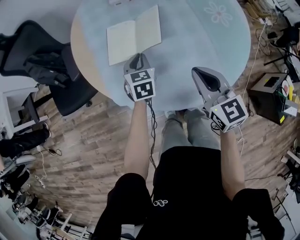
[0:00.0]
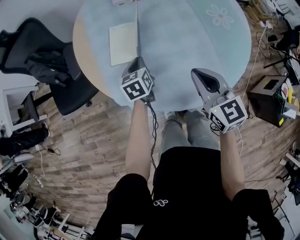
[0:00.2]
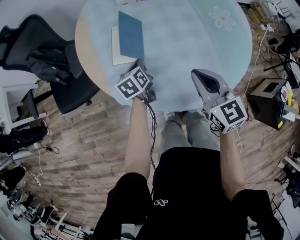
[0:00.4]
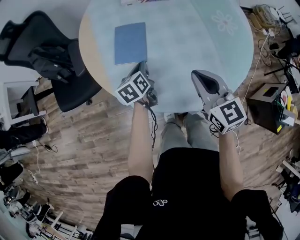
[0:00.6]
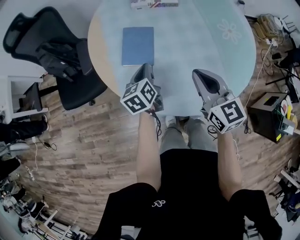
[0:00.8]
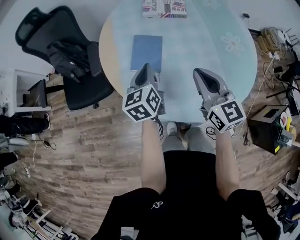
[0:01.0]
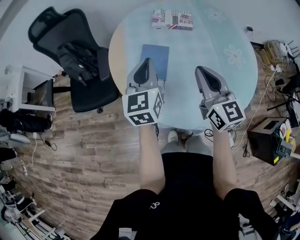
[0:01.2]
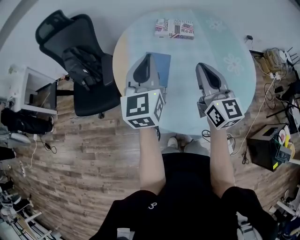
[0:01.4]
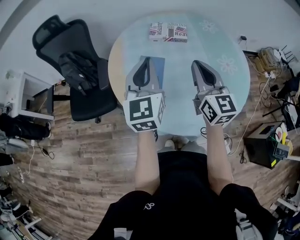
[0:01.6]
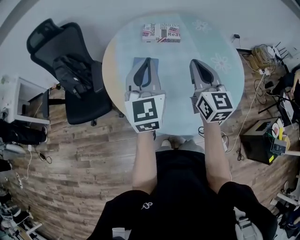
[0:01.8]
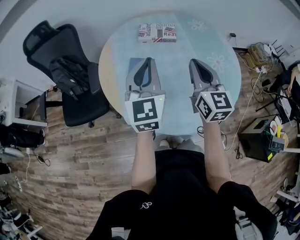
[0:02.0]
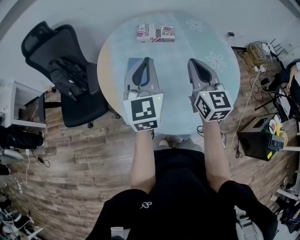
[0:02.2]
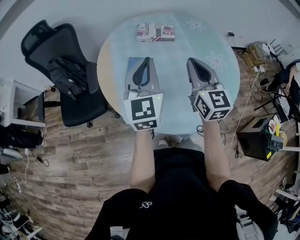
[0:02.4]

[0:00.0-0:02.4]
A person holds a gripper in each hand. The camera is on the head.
0:00.0 to 0:01.2: The right gripper shifts about 15 cm upward, forward and to the left; the left gripper goes roughly 25 cm upward, and swivels about 30 degrees.
0:01.2 to 0:02.4: The left gripper is displaced upward by approximately 10 cm. Meanwhile the right gripper changes place by approximately 5 cm.

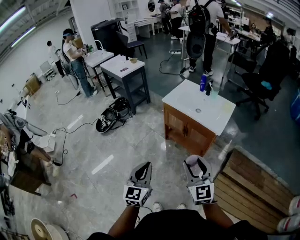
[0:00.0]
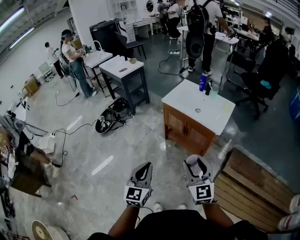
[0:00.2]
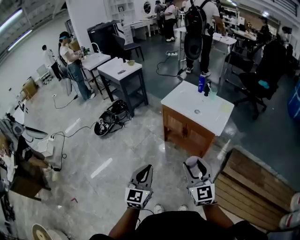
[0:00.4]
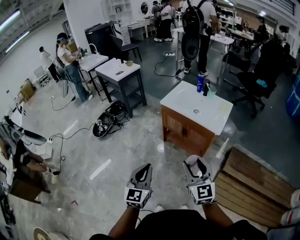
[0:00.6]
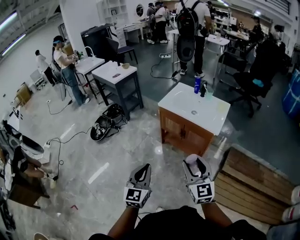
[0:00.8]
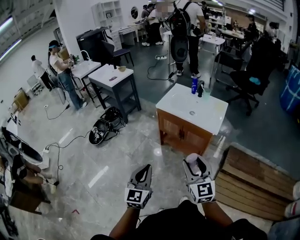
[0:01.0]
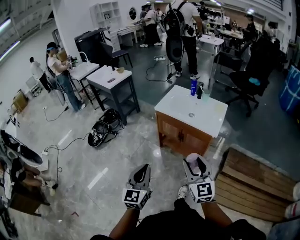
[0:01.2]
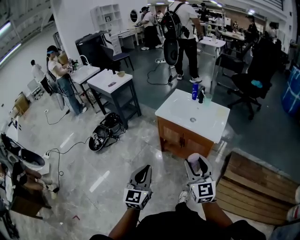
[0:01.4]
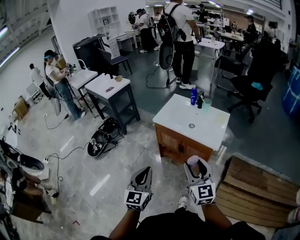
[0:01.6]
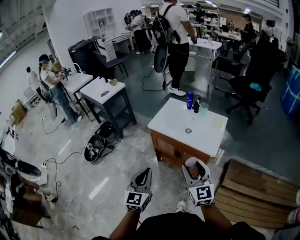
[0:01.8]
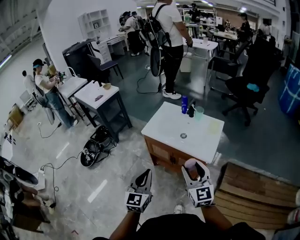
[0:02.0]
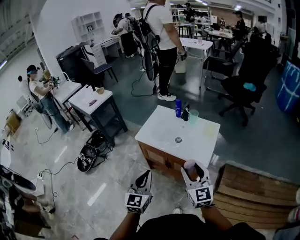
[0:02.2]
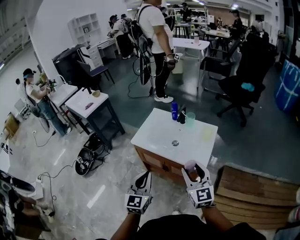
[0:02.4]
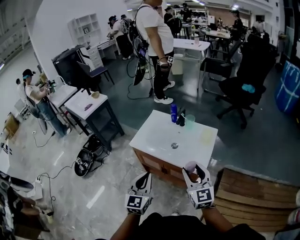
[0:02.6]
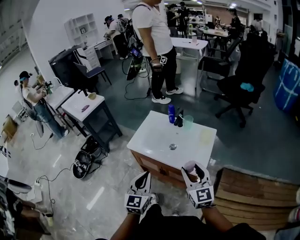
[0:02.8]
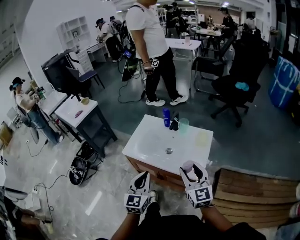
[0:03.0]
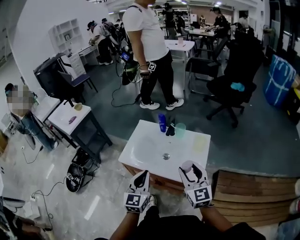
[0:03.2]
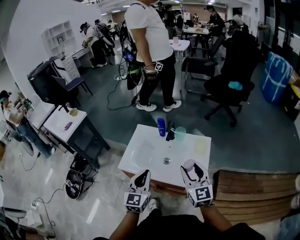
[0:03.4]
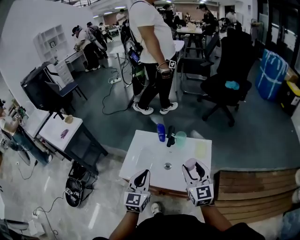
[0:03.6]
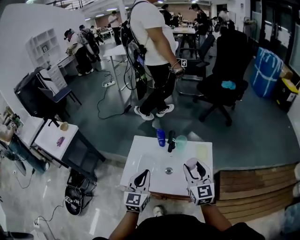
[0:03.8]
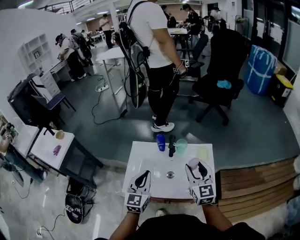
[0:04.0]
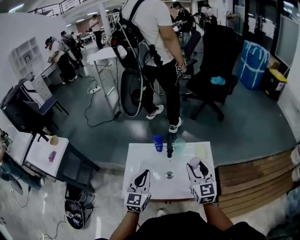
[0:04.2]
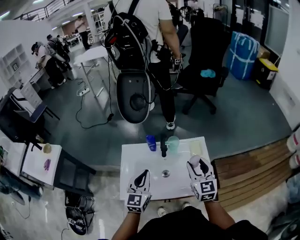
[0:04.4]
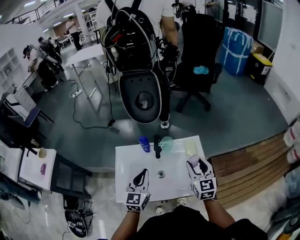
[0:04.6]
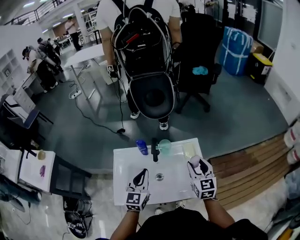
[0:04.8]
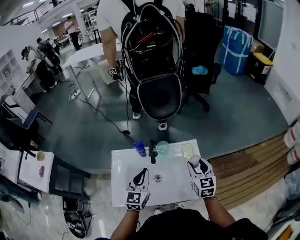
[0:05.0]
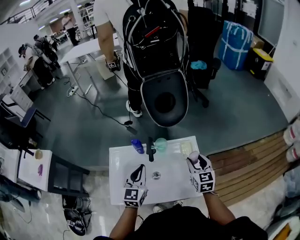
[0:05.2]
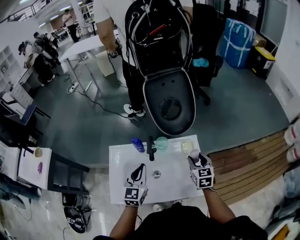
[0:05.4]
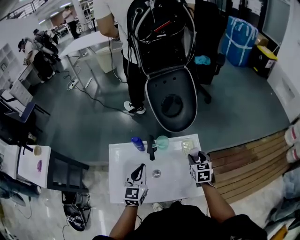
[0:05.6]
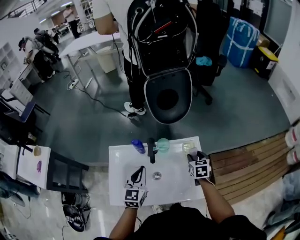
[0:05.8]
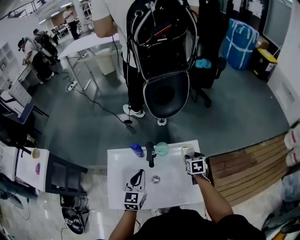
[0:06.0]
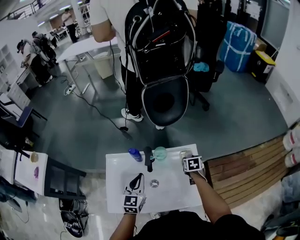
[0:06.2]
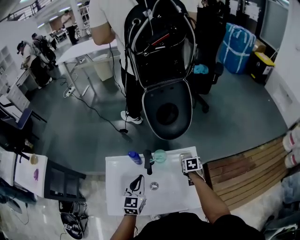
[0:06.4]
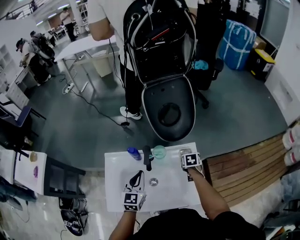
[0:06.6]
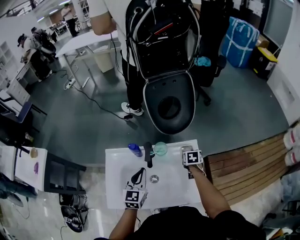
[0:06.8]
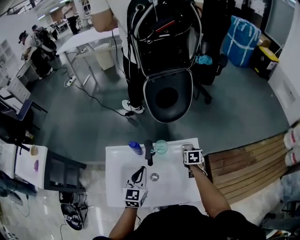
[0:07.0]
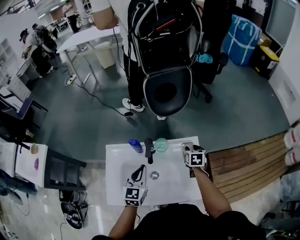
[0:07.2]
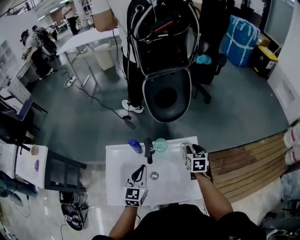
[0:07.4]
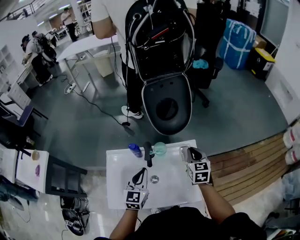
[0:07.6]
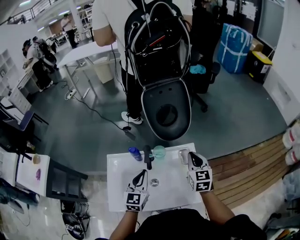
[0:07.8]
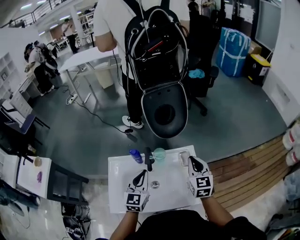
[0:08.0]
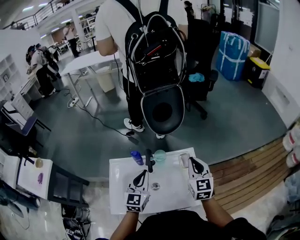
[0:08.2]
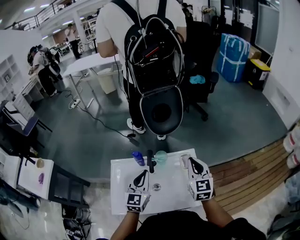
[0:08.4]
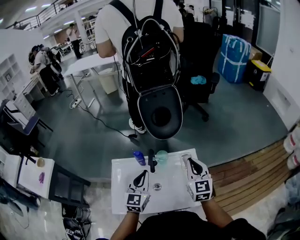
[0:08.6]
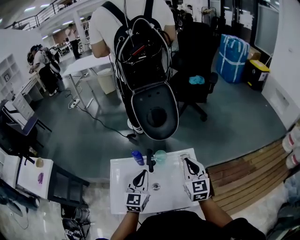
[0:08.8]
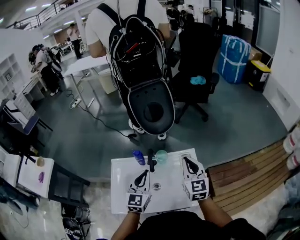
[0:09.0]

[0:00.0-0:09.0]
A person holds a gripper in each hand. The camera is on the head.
0:00.0 to 0:01.6: Both grippers travel together forward, some 15 cm.
0:01.6 to 0:03.0: Both grippers travel together forward and to the right, roughly 30 cm.
0:03.0 to 0:04.4: The right gripper ends up about 20 cm from where it was, and swivels roughly 30 degrees; the left gripper shifts by some 25 cm, and turns by about 30 degrees.
0:04.4 to 0:06.0: The right gripper moves downward and forward, some 25 cm, and points its fingers about 40 degrees further downward. Meanwhile the left gripper travels forward and downward by some 10 cm.
0:06.0 to 0:07.6: The right gripper heads upward, covering about 15 cm, changes its angle by roughly 20 degrees, and closes its fingers.
0:07.6 to 0:09.0: The right gripper travels upward and backward by some 15 cm, and swivels about 20 degrees. Meanwhile the left gripper is displaced upward by approximately 5 cm.

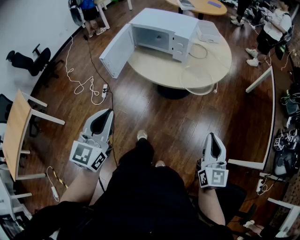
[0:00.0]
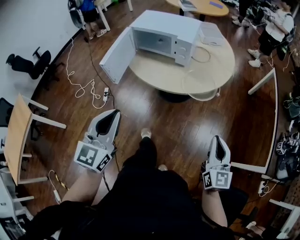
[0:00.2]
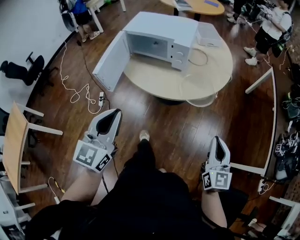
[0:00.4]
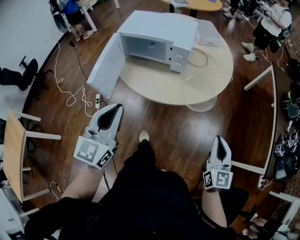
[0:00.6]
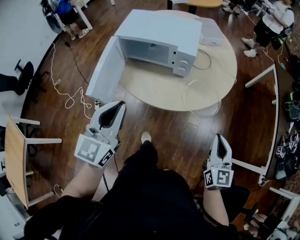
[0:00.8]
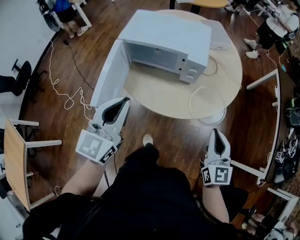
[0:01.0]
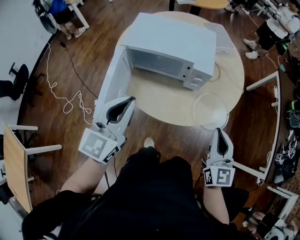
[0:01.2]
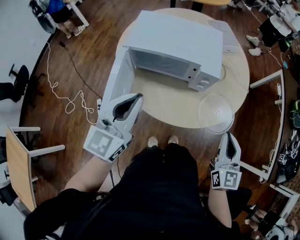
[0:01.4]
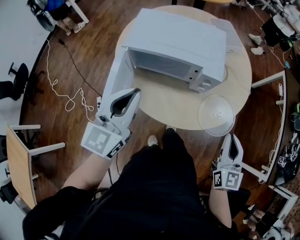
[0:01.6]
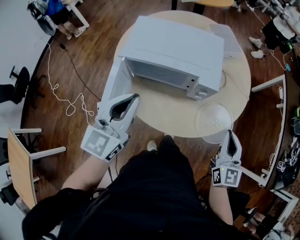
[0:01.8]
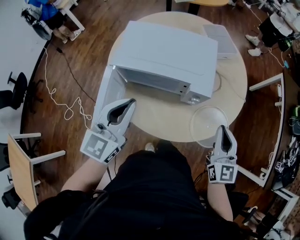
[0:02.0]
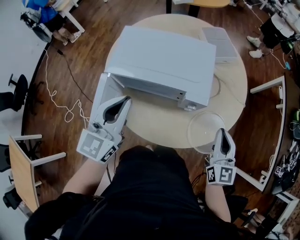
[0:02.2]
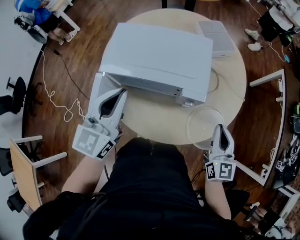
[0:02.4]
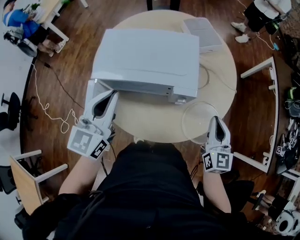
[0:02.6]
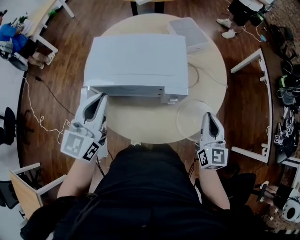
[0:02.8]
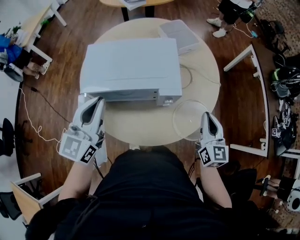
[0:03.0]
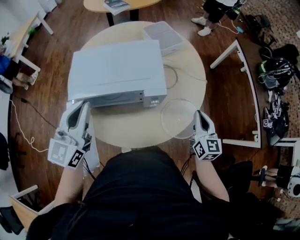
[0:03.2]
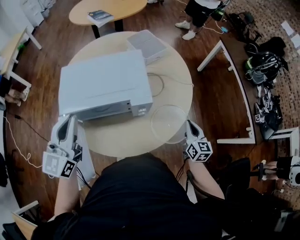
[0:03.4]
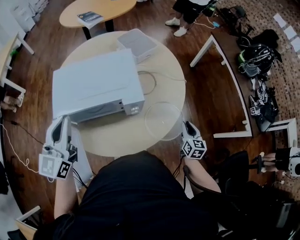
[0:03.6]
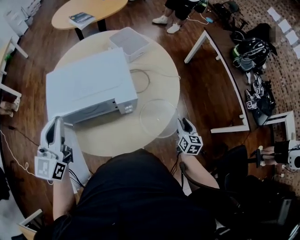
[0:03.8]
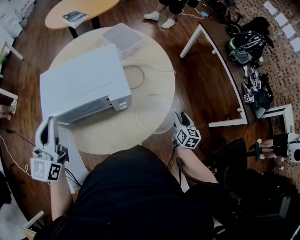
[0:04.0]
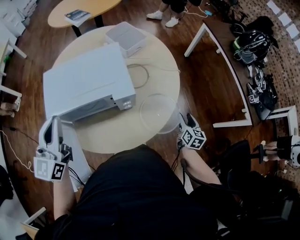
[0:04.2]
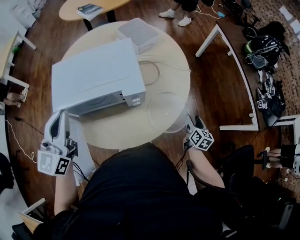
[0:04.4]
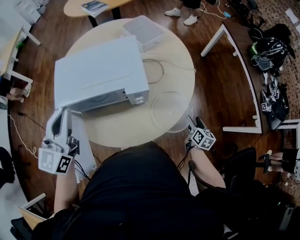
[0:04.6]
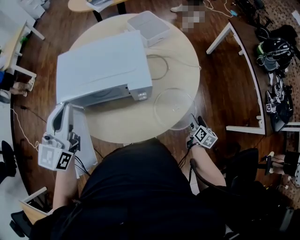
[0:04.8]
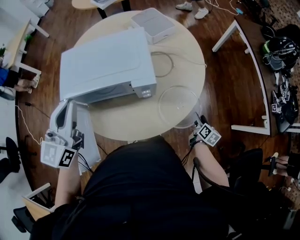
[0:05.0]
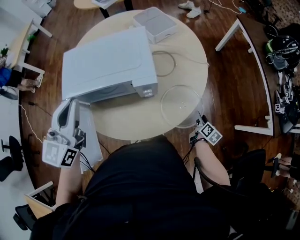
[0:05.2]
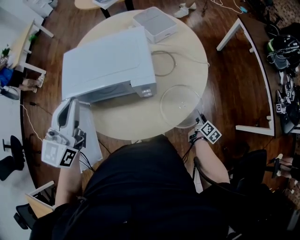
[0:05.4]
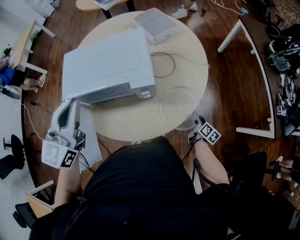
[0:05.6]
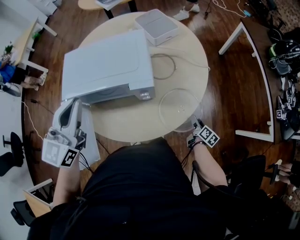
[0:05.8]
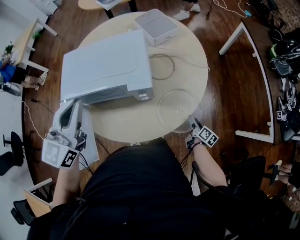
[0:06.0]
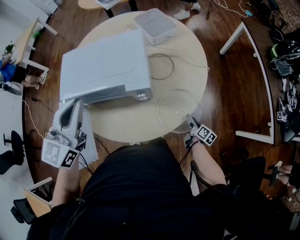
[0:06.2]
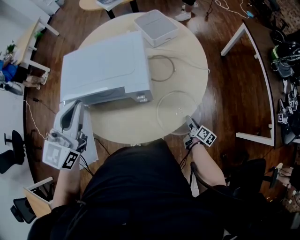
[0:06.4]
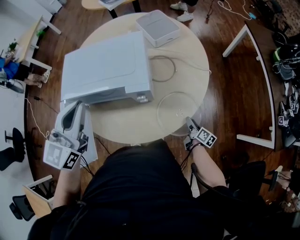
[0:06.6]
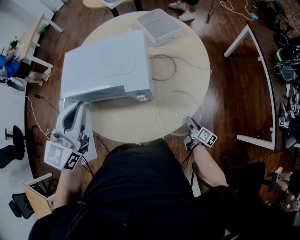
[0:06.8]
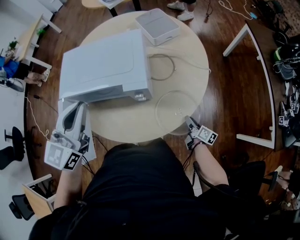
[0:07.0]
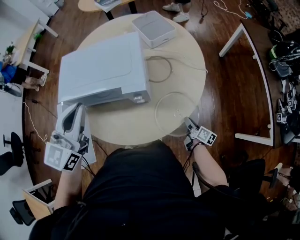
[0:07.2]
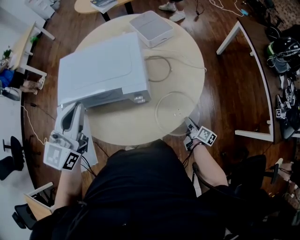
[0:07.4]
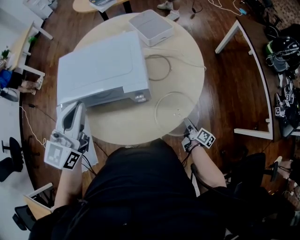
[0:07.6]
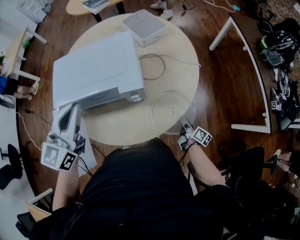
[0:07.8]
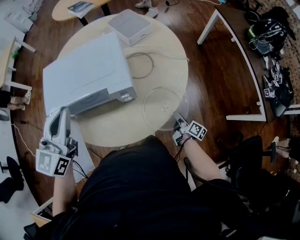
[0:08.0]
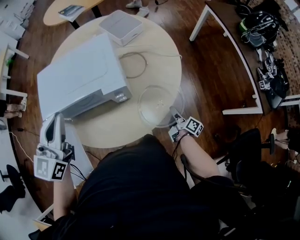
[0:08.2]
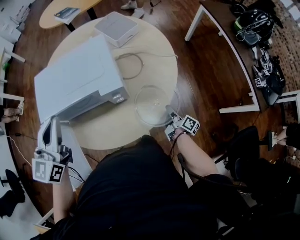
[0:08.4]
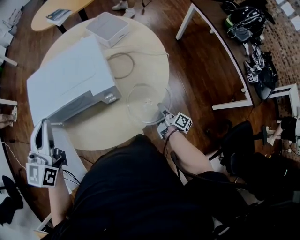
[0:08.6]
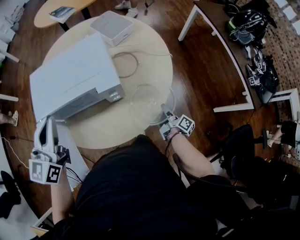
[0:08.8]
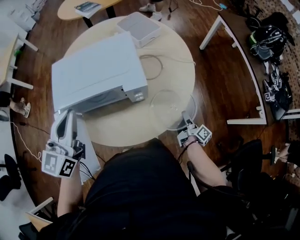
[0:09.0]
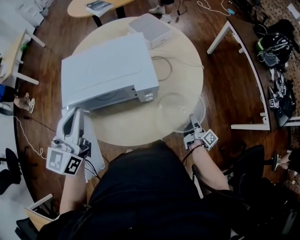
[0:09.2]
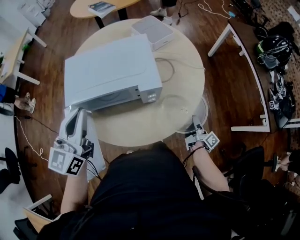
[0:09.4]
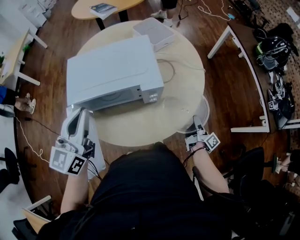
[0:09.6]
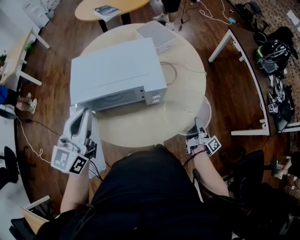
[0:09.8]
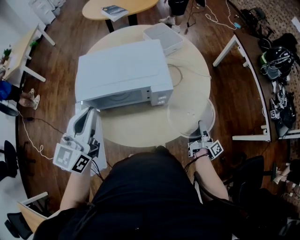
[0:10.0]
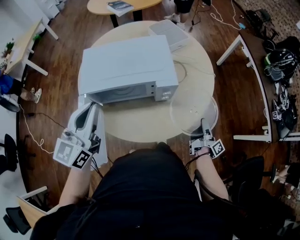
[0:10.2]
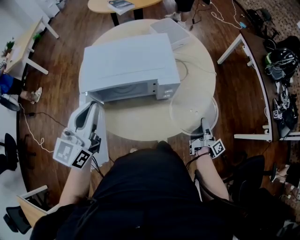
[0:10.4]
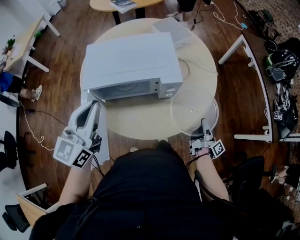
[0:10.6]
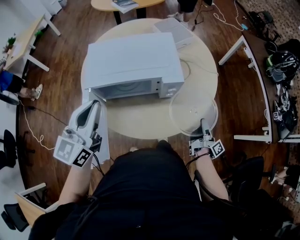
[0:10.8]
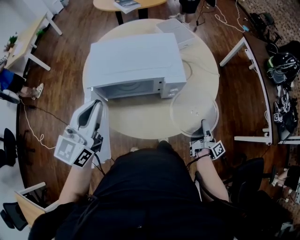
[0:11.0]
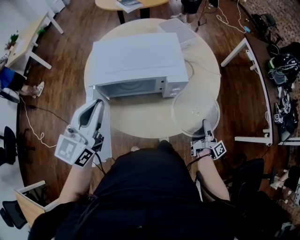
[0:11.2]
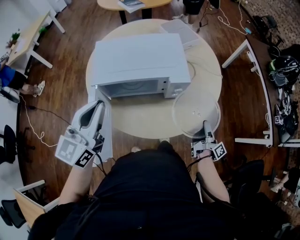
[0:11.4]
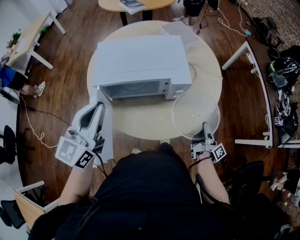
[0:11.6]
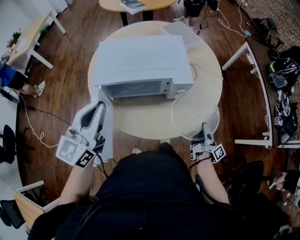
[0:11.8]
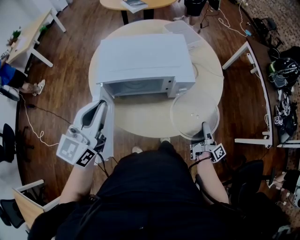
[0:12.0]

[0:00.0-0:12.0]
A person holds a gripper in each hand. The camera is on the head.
0:00.0 to 0:01.6: The left gripper ends up some 35 cm from where it was, and turns by about 20 degrees.
0:01.6 to 0:03.0: The left gripper changes place by some 10 cm.
0:04.4 to 0:06.0: The left gripper ends up some 5 cm from where it was.
0:09.0 to 0:10.4: The left gripper moves some 5 cm.
